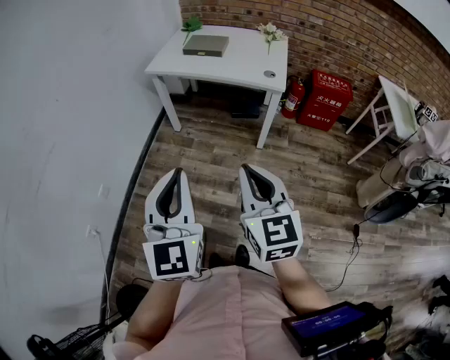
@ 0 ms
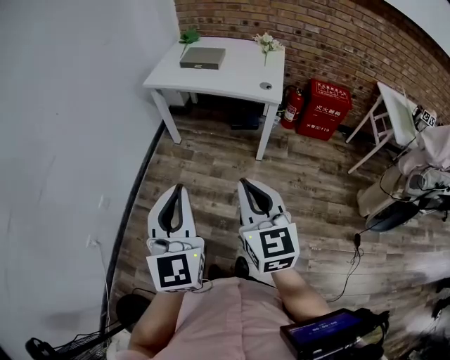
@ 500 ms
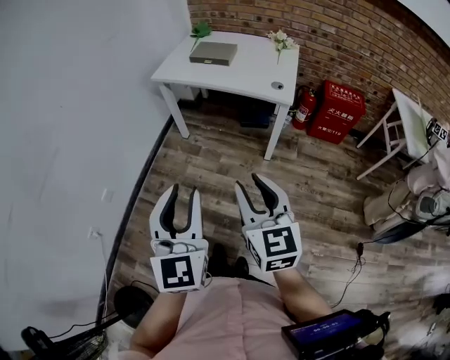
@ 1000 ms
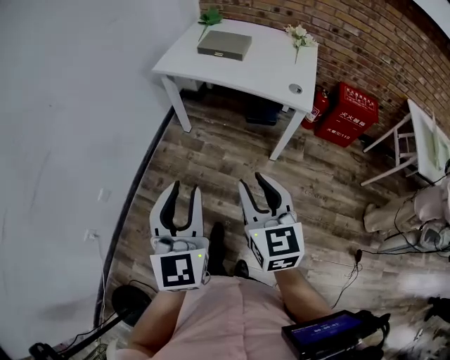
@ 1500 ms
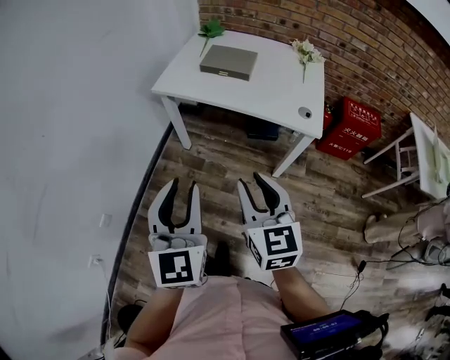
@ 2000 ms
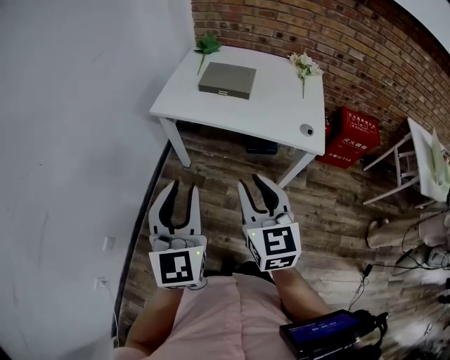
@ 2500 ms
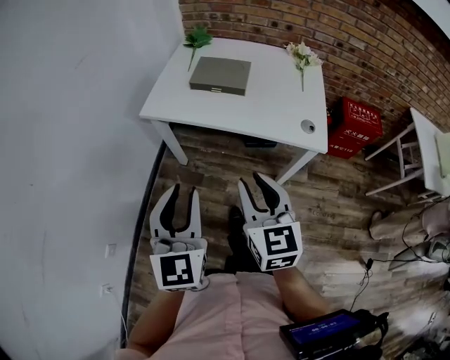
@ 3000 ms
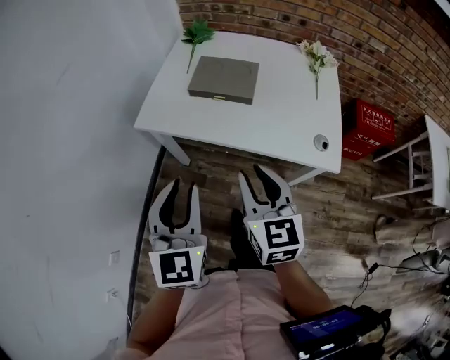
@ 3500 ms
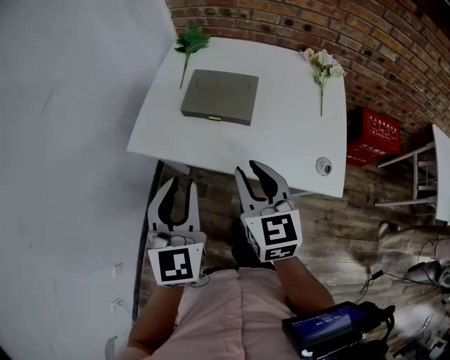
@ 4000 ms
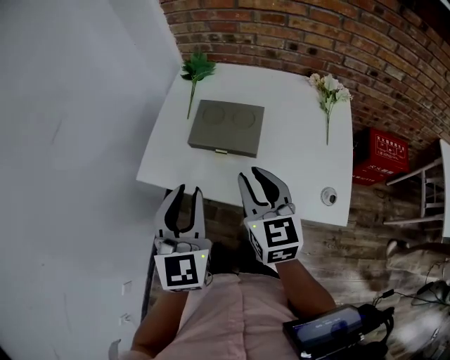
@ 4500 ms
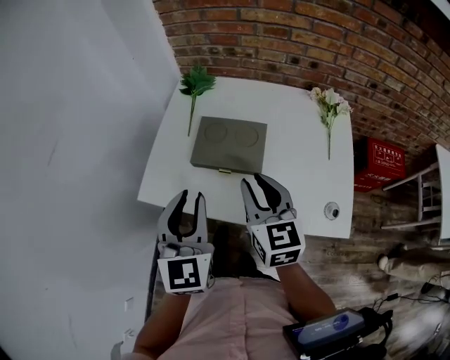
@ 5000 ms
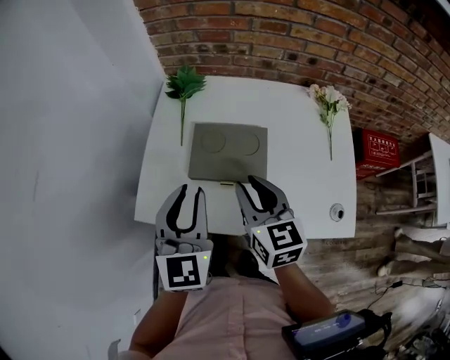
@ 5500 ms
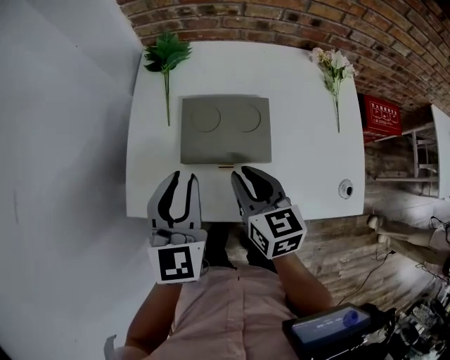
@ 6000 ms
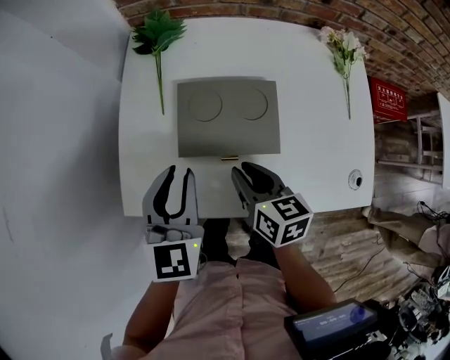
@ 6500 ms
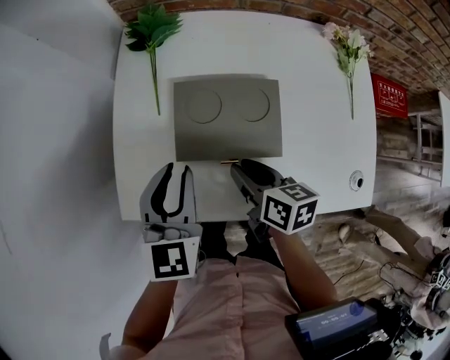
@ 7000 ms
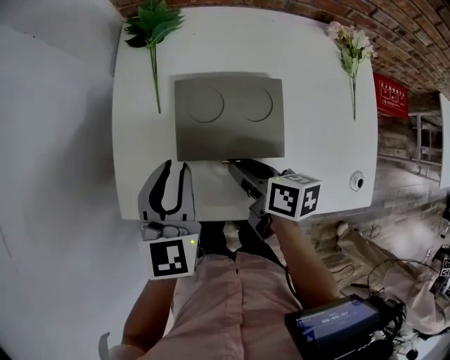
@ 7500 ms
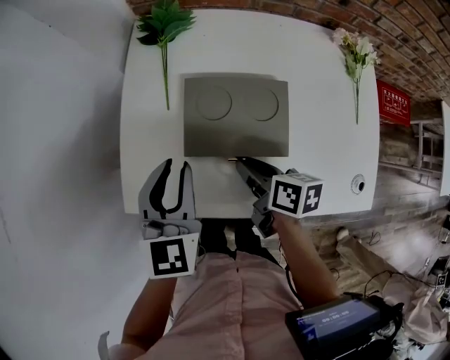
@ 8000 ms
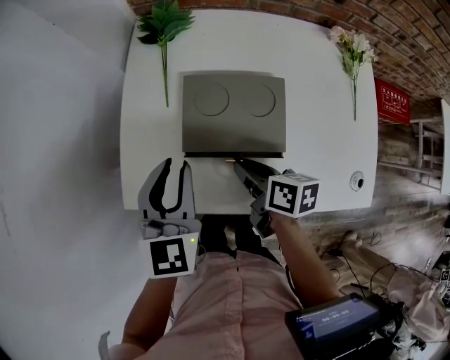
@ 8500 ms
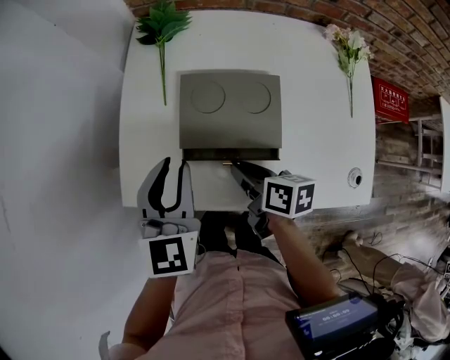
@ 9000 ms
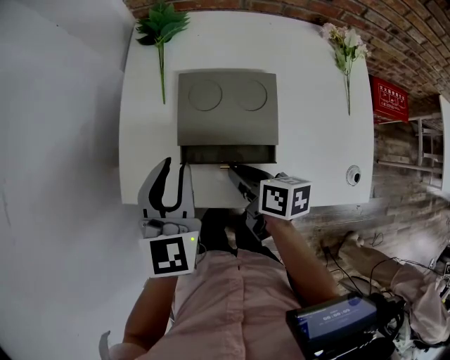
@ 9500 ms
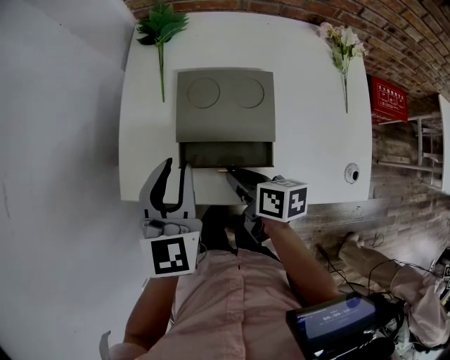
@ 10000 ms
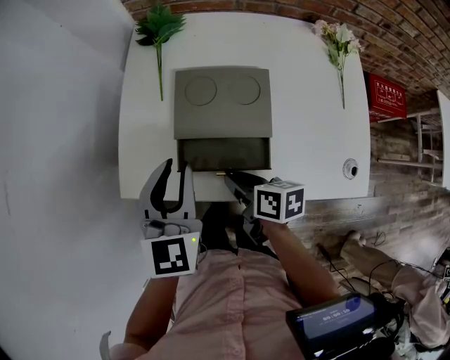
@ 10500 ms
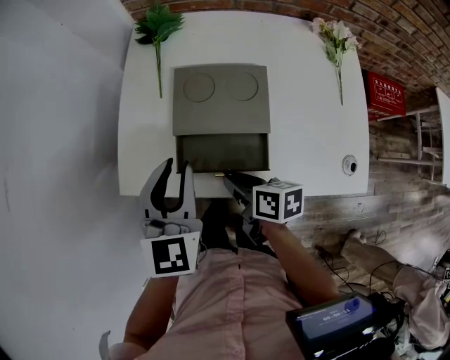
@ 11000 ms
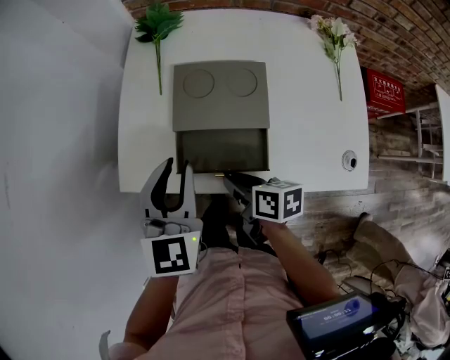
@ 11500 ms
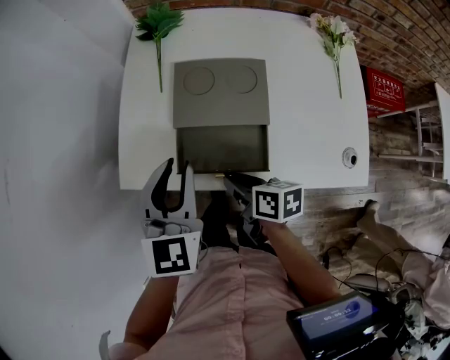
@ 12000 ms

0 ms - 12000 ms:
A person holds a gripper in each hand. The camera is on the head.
0 ms - 2000 ms: The grippers both shift forward by roughly 25 cm. The left gripper opens up. The right gripper opens its fingers.
2000 ms - 4000 ms: The grippers both shift forward by roughly 35 cm.
4000 ms - 6000 ms: The left gripper heads forward, covering roughly 20 cm; the right gripper moves forward and downward, about 20 cm.
6000 ms - 8000 ms: The left gripper is displaced downward by about 5 cm, while the right gripper is displaced downward by about 10 cm, and rotates about 40 degrees.
8000 ms - 10000 ms: The right gripper goes approximately 5 cm backward; the left gripper shifts by roughly 5 cm.
10000 ms - 12000 ms: The right gripper moves backward, roughly 5 cm.

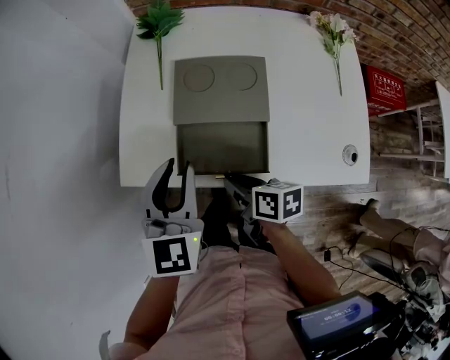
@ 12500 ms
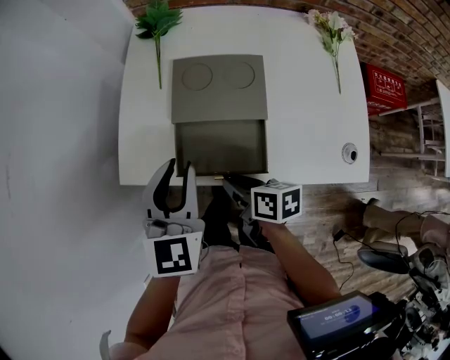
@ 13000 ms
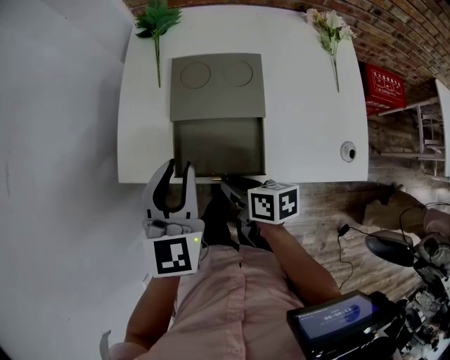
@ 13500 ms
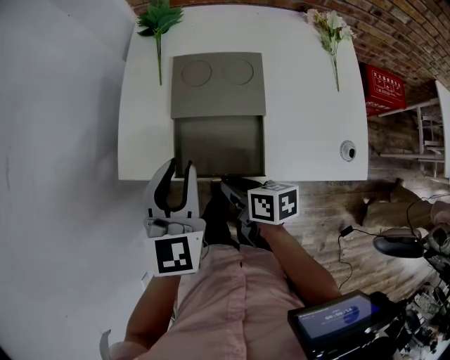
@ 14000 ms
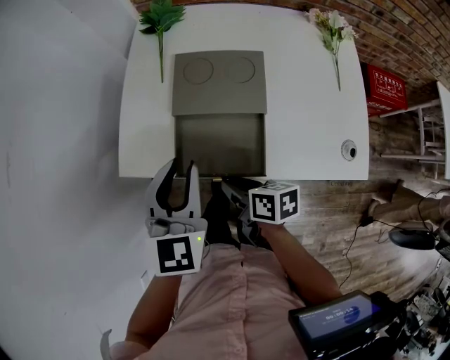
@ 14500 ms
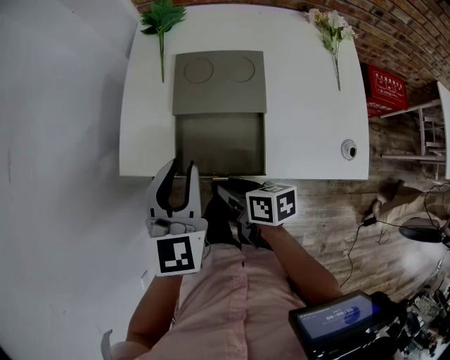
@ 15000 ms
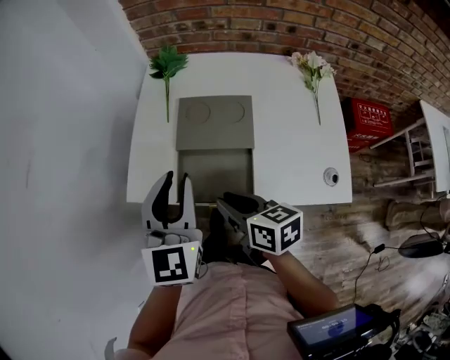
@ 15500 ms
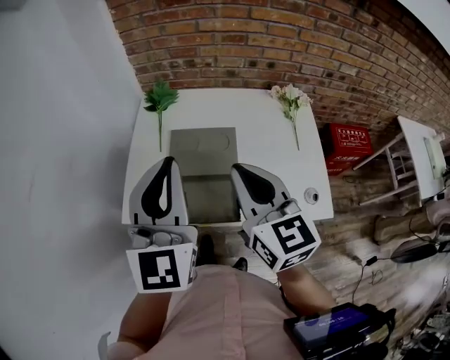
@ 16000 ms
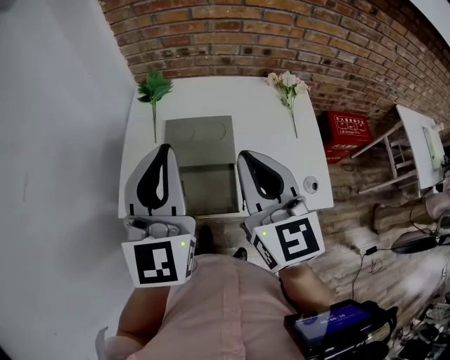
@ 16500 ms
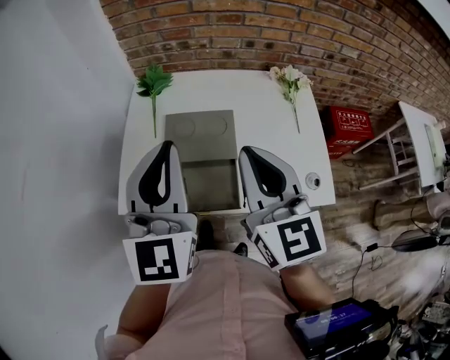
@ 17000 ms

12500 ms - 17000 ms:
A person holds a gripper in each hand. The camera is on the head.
12500 ms - 14500 ms: The grippers move only a little.
14500 ms - 17000 ms: The right gripper heads upward, covering about 35 cm, and tilts its fingers about 30 degrees upward; the left gripper travels upward by about 20 cm, turns by roughly 30 degrees, and closes.

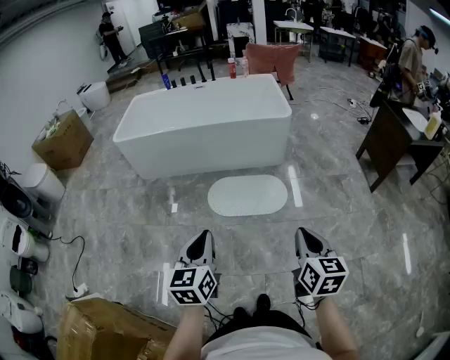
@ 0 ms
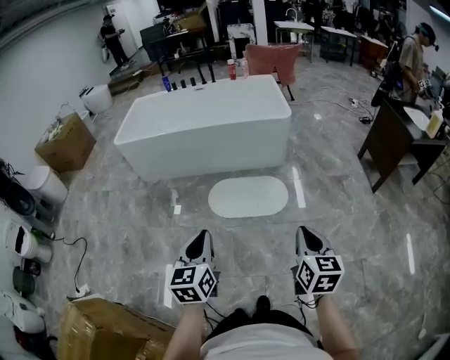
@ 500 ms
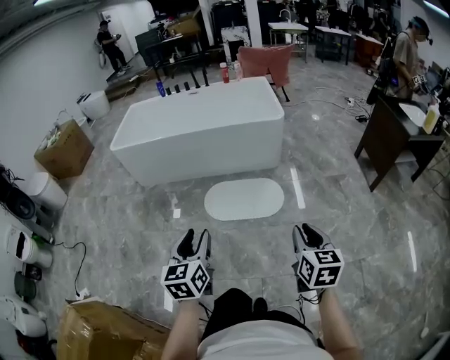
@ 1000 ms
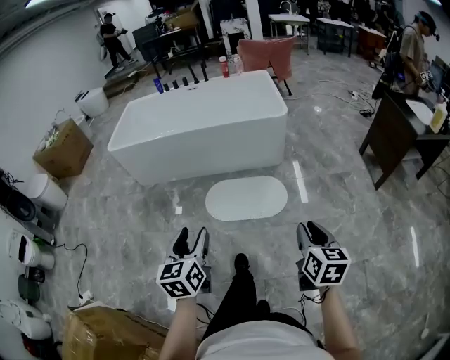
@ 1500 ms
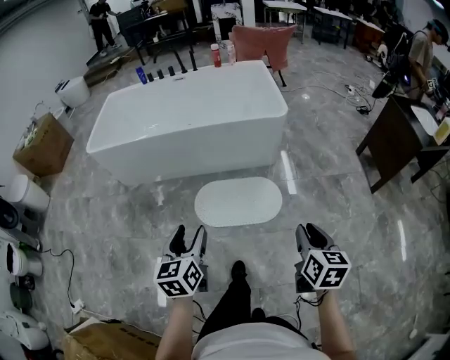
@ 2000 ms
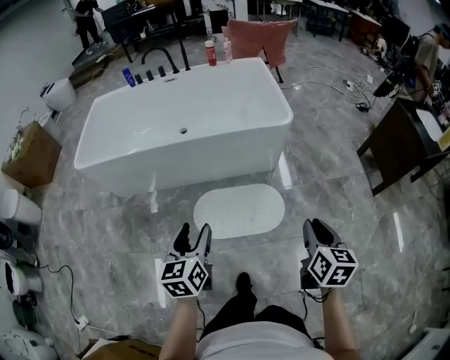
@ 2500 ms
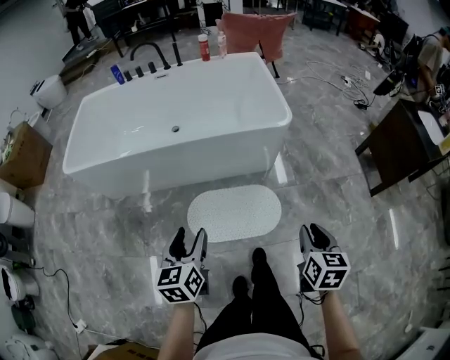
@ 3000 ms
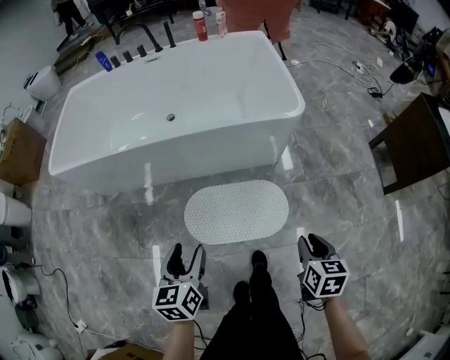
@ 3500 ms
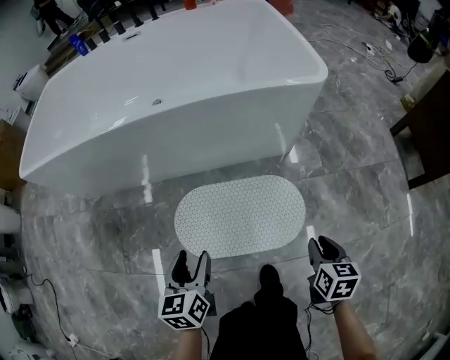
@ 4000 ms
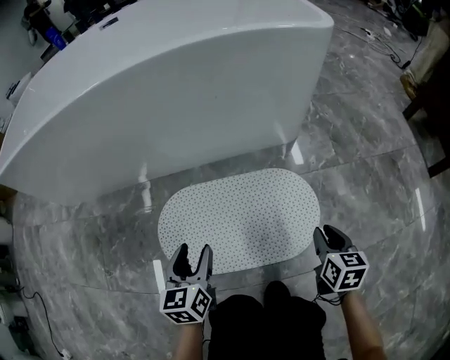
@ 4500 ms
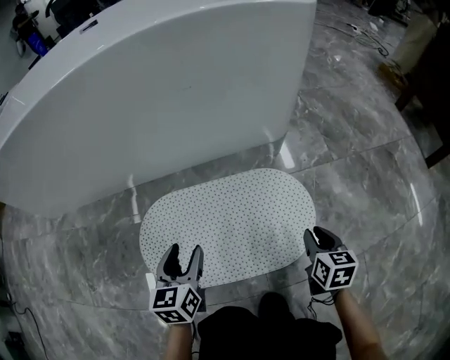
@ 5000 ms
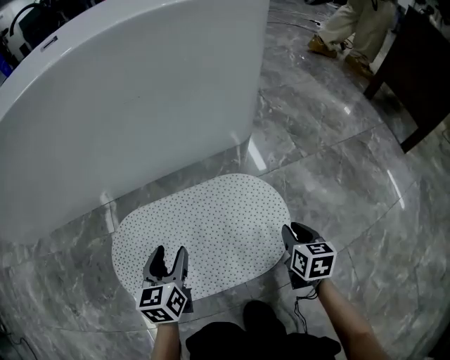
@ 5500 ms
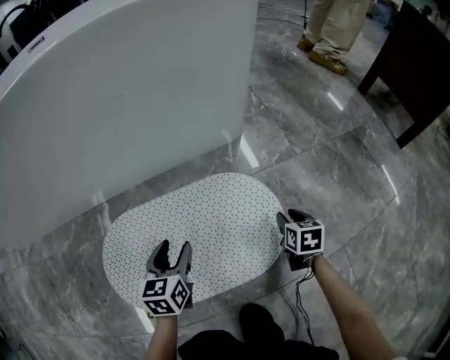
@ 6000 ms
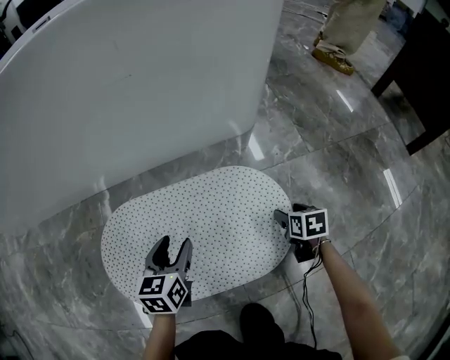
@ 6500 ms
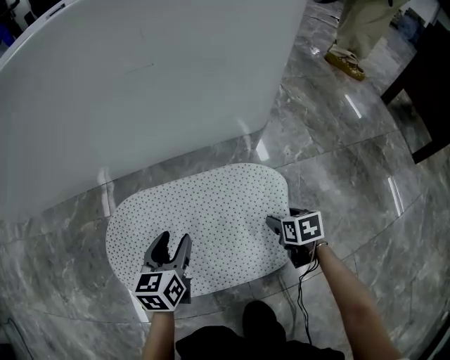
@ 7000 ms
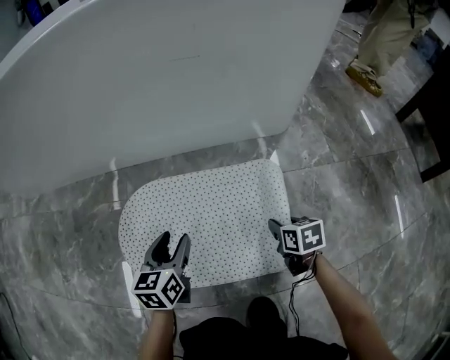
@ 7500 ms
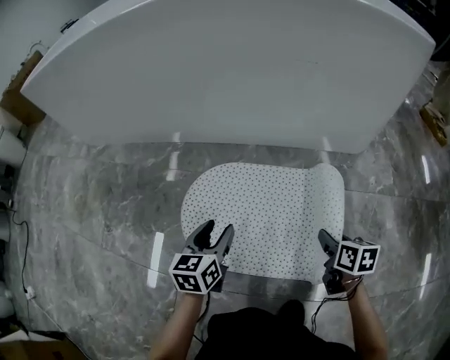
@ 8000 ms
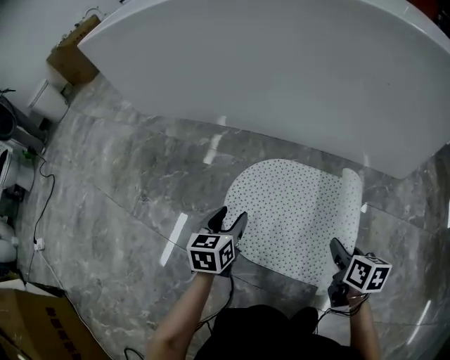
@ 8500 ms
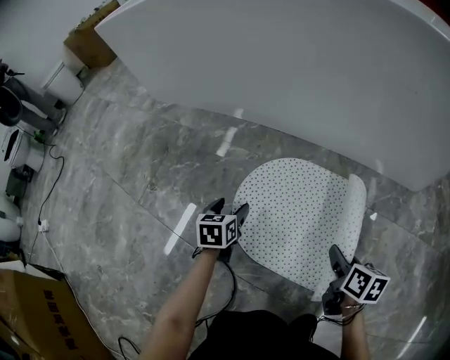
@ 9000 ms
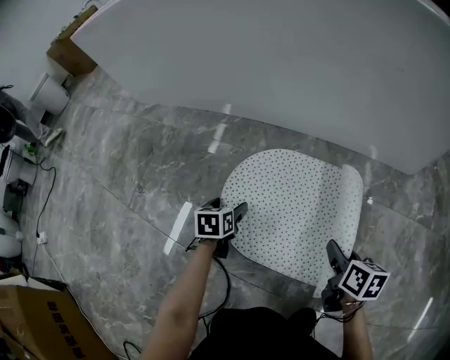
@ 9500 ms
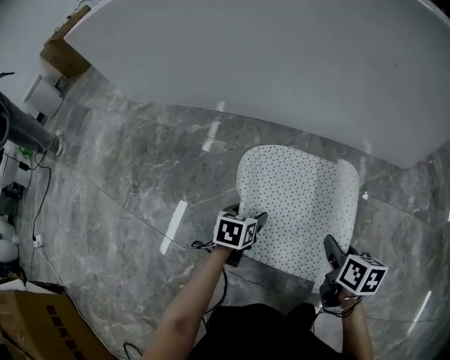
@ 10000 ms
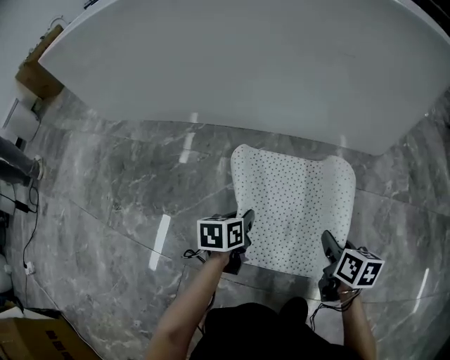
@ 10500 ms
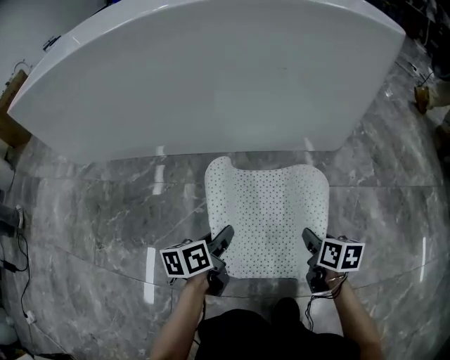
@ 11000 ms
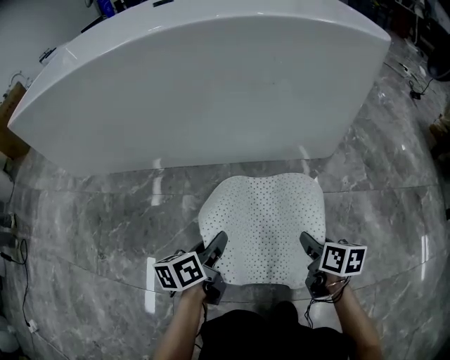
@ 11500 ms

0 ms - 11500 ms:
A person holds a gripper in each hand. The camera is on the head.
0 ms - 2000 ms: Both grippers move forward, some 20 cm. The left gripper opens.
2000 ms - 4000 ms: The grippers both shift downward and forward by some 50 cm.
4000 ms - 6000 ms: Both grippers travel together downward, some 35 cm. The left gripper swivels roughly 20 degrees.
6000 ms - 7500 ms: The left gripper travels to the left by approximately 10 cm; the right gripper travels to the left by approximately 15 cm, changes its angle by some 30 degrees, and opens and closes again.
7500 ms - 9500 ms: The right gripper heads to the left, covering roughly 15 cm; the left gripper goes about 25 cm to the left and downward, rotates about 30 degrees, and opens.
9500 ms - 11500 ms: The right gripper moves approximately 10 cm, while the left gripper changes place by roughly 25 cm, rotates some 40 degrees, and closes up.
